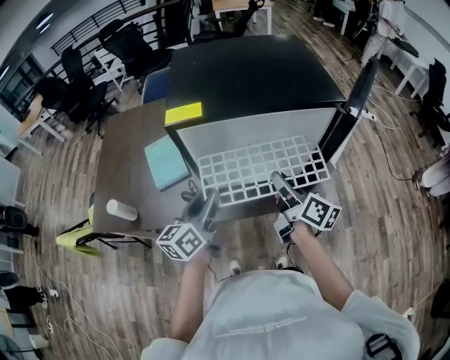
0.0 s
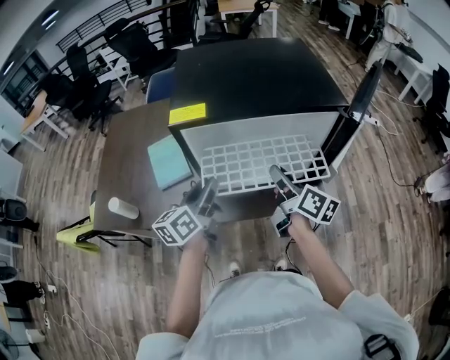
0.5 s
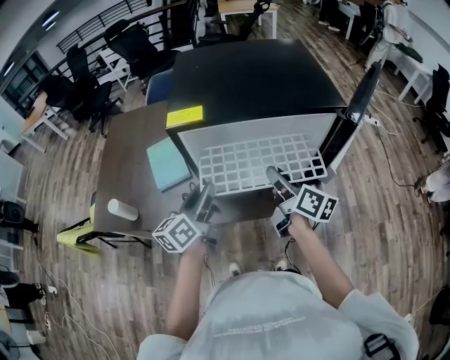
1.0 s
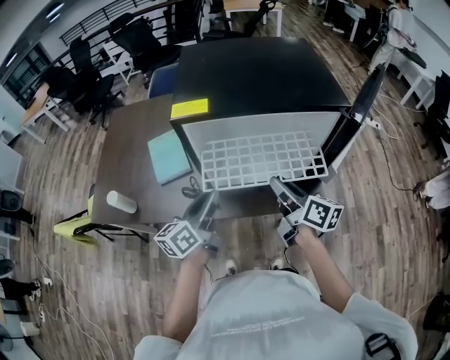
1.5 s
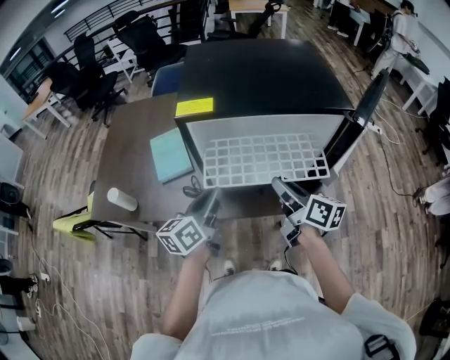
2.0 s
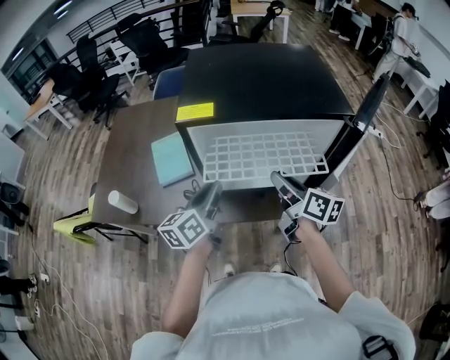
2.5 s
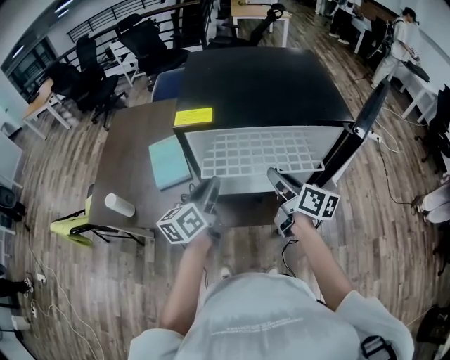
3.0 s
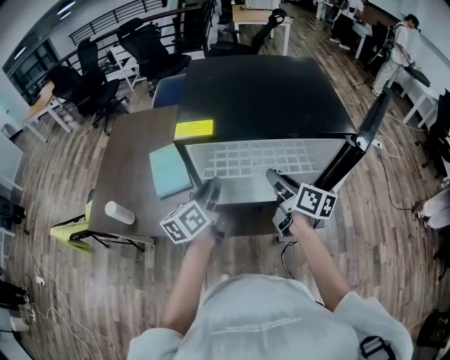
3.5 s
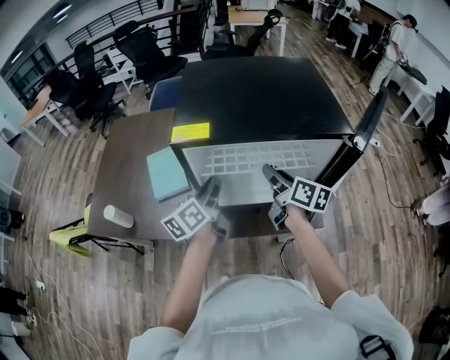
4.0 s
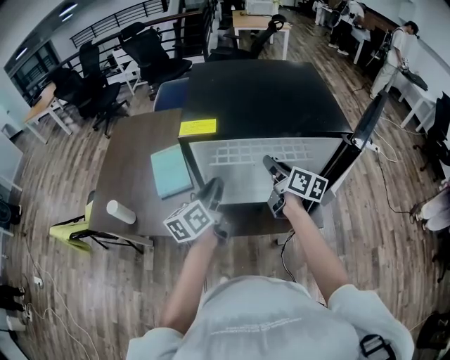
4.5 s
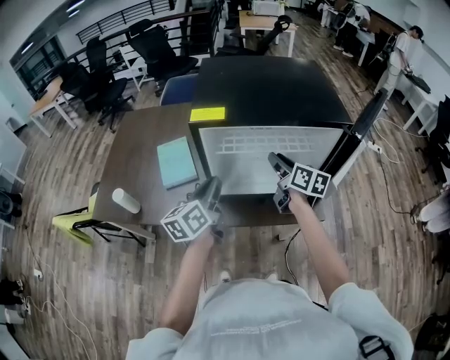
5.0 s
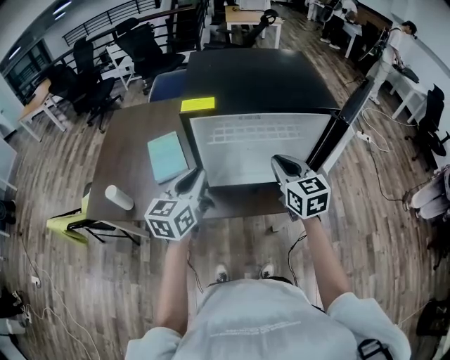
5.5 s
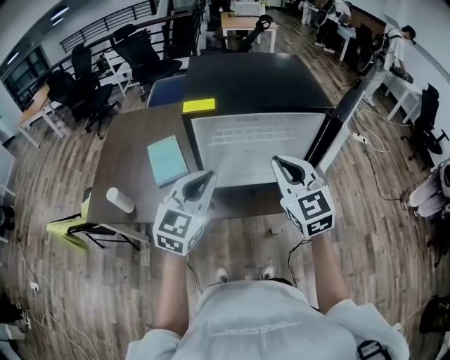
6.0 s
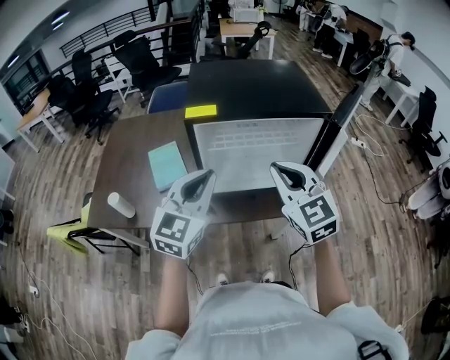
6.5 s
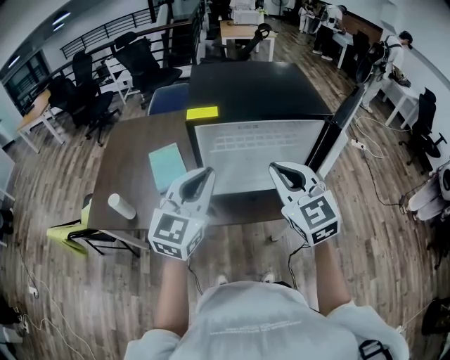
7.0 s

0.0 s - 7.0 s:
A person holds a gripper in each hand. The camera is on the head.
0.0 s - 2.0 s: The grippers make only small movements.
2.0 s - 3.5 s: Both grippers move forward, some 10 cm.
3.5 s - 5.0 s: The left gripper is displaced backward by about 5 cm.
5.0 s - 7.0 s: The left gripper travels upward and backward by some 15 cm, and twists approximately 50 degrees clockwise, seen from behind, while the right gripper travels backward and upward by about 25 cm, rolls counterclockwise, seen from behind, by roughly 60 degrees, and closes its fingers.

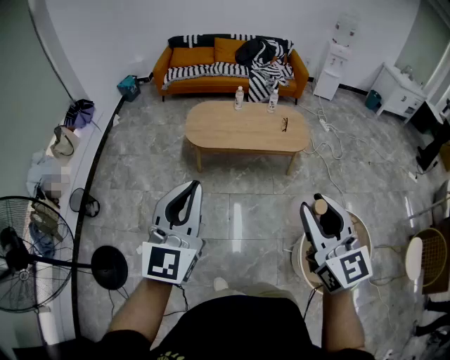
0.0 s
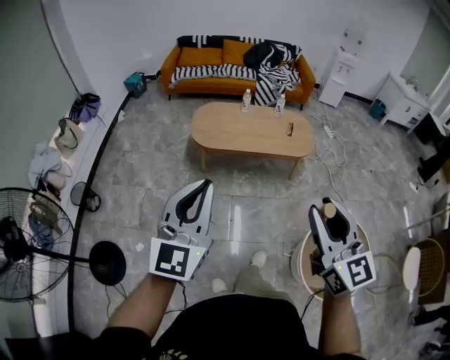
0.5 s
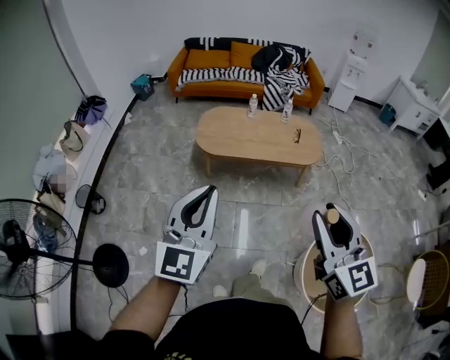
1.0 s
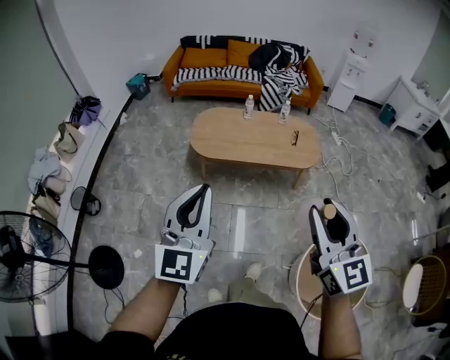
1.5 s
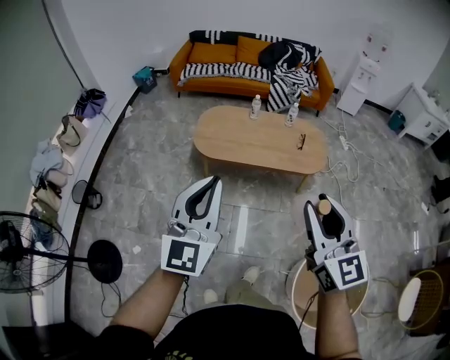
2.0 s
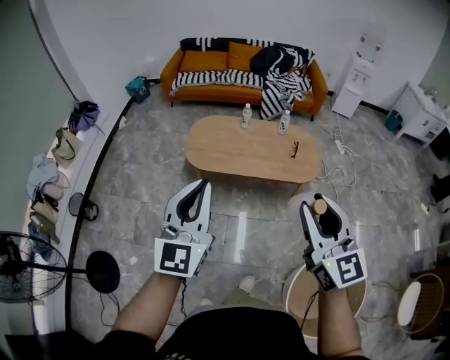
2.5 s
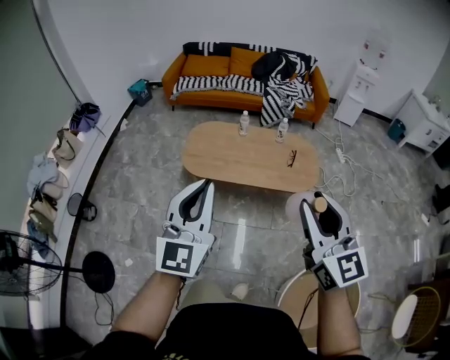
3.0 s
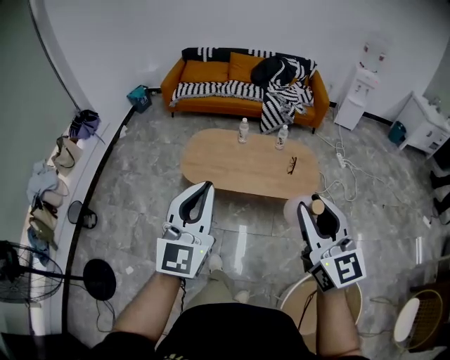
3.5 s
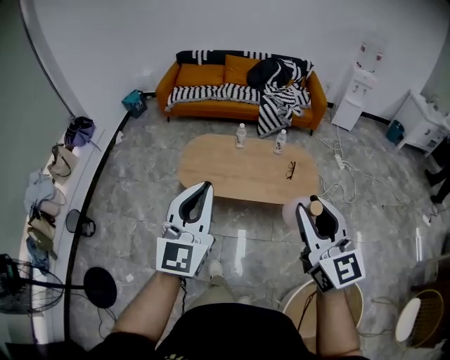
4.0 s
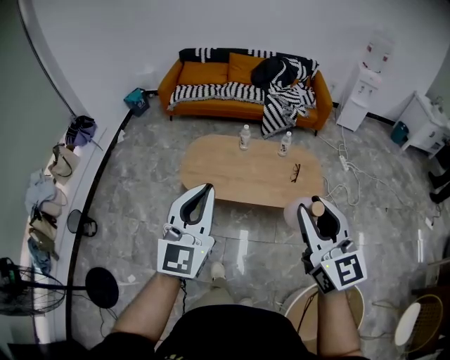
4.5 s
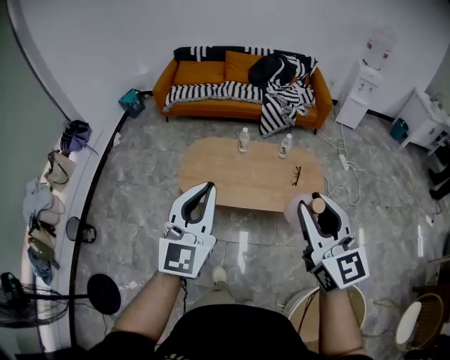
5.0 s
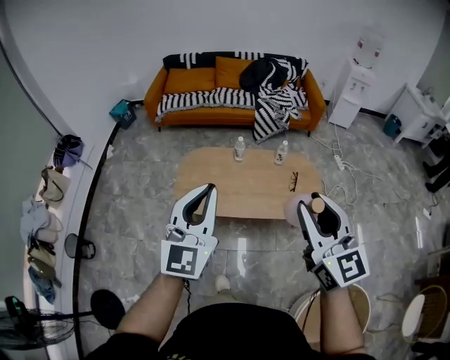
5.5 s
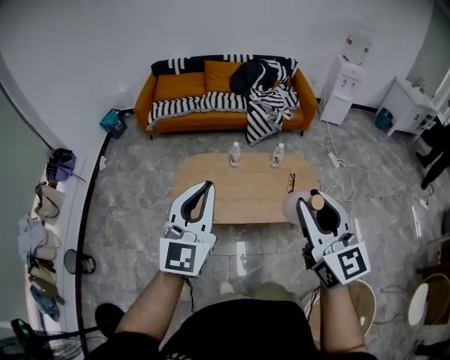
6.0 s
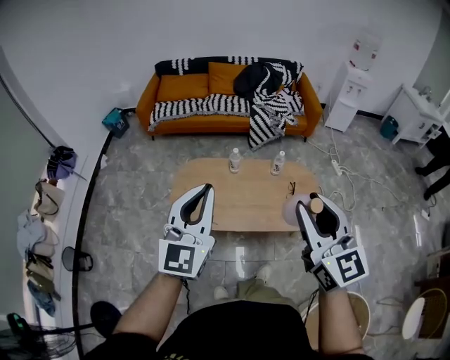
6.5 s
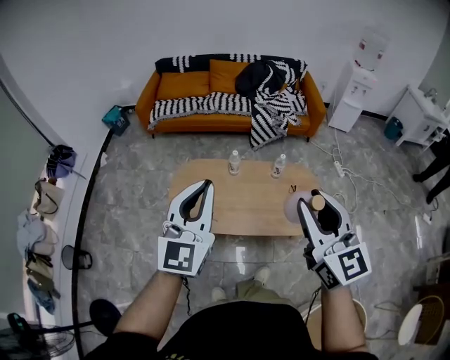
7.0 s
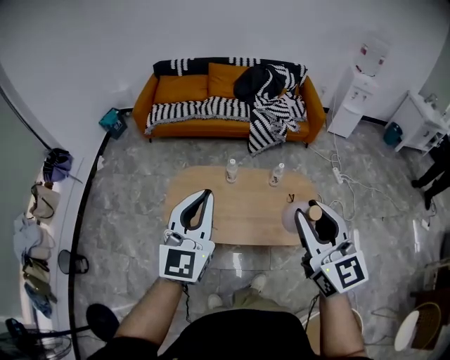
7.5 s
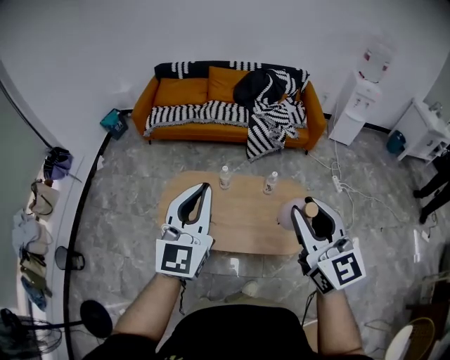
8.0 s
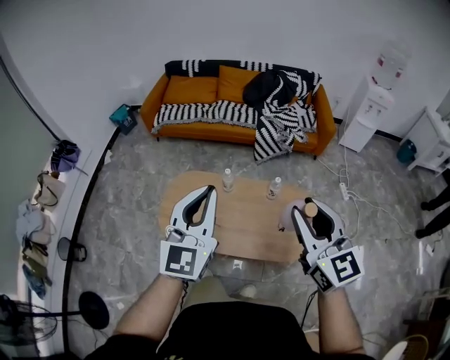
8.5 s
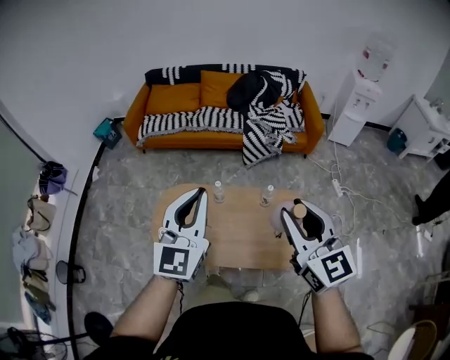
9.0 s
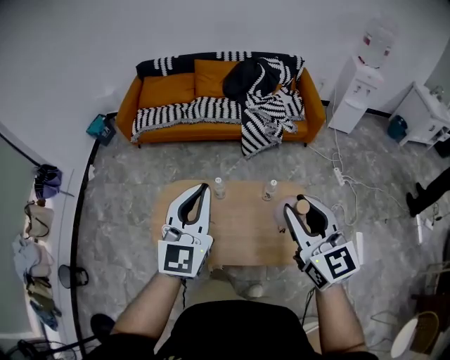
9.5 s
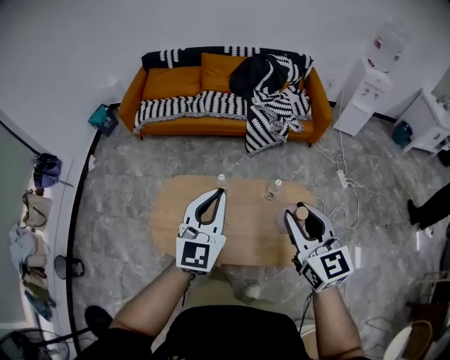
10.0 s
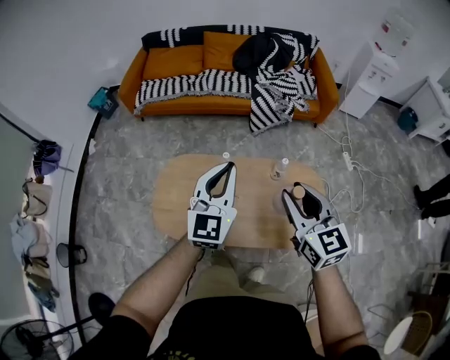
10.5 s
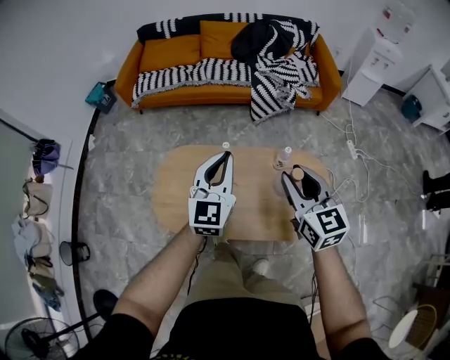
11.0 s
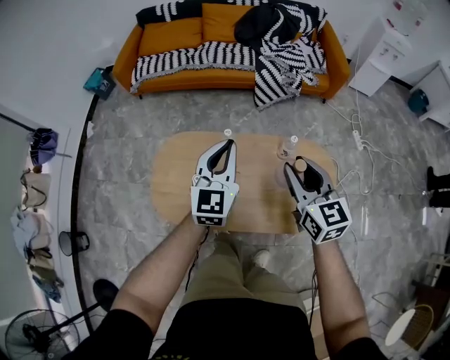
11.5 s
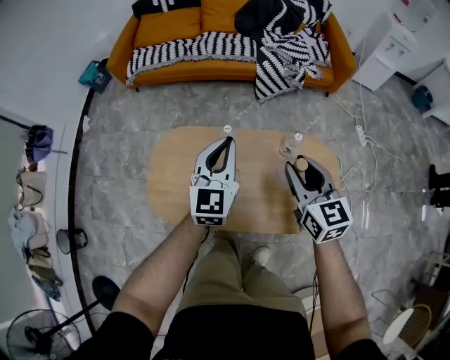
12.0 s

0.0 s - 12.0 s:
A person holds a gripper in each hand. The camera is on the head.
0.0 s - 2.0 s: The two grippers go about 20 cm forward.
2.0 s - 4.0 s: Both grippers travel together forward and to the right, about 20 cm.
4.0 s - 6.0 s: The two grippers go some 20 cm forward.
6.0 s - 8.0 s: The grippers both shift forward and to the right by approximately 20 cm.
8.0 s - 10.0 s: Both grippers move forward and downward, about 20 cm.
10.0 s - 12.0 s: Both grippers travel together downward and forward, about 20 cm.

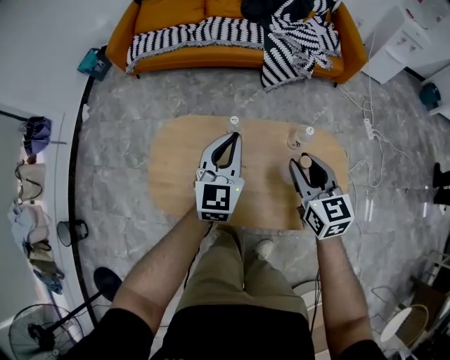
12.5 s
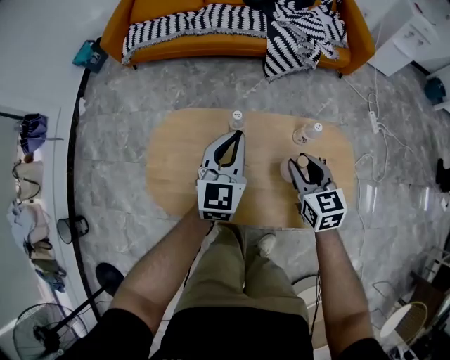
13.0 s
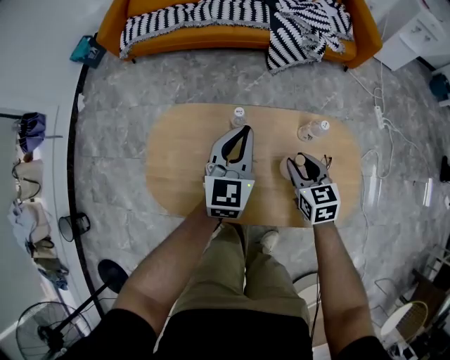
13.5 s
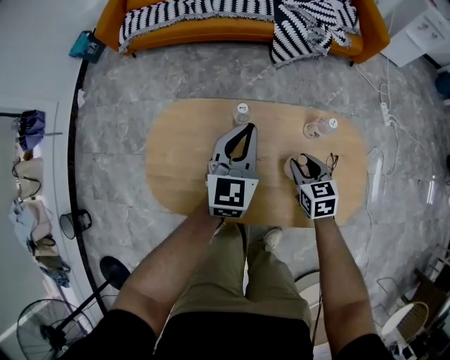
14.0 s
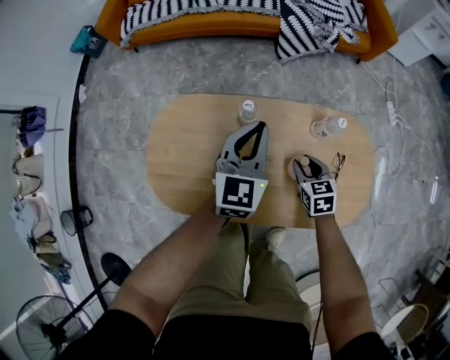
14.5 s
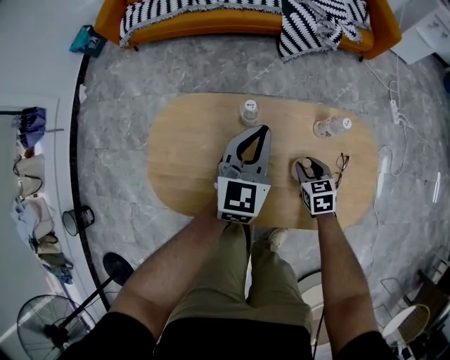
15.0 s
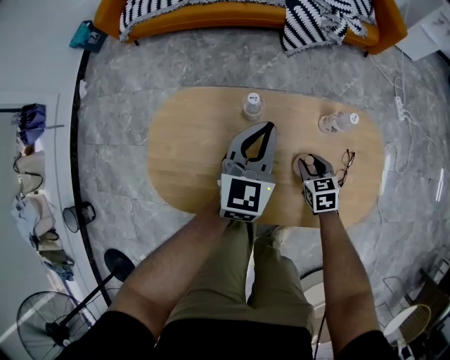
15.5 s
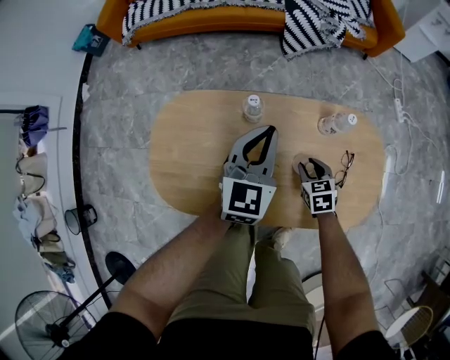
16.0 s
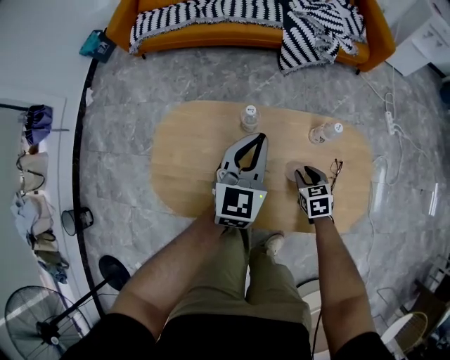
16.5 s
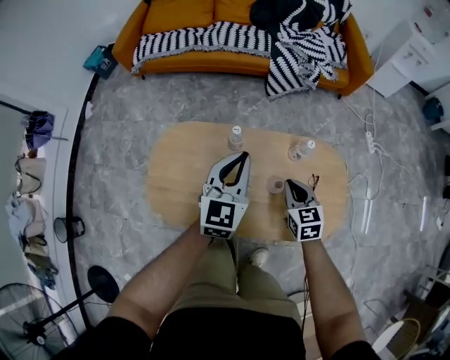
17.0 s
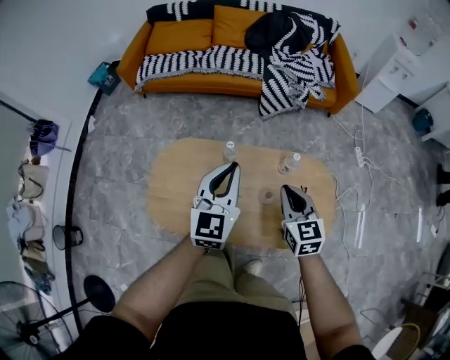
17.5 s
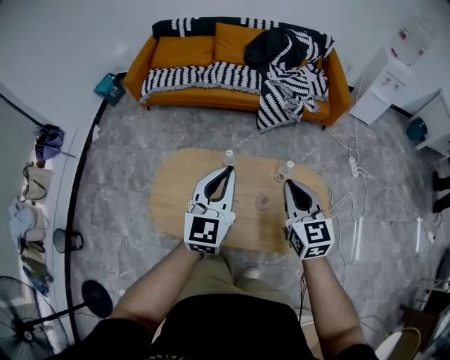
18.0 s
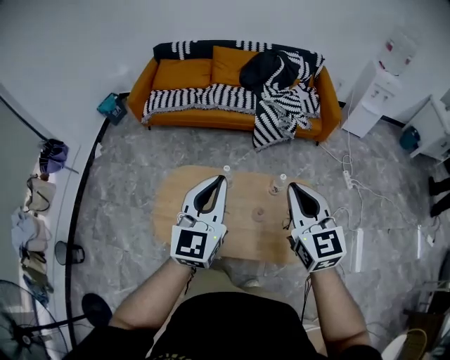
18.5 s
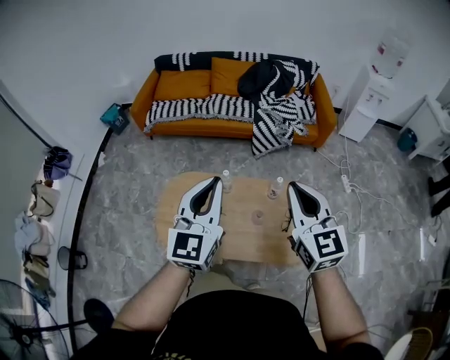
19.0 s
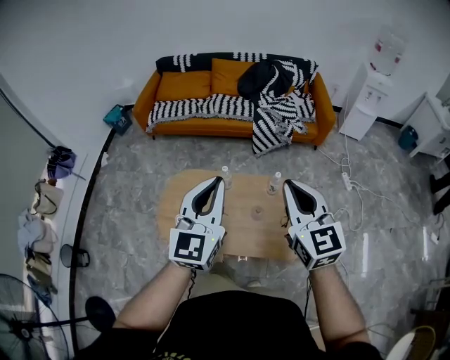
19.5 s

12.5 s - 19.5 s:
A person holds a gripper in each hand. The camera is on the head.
12.5 s - 14.5 s: The right gripper travels downward by roughly 30 cm, and changes its angle by about 20 degrees; the left gripper is displaced downward by approximately 10 cm.
14.5 s - 16.0 s: The right gripper goes about 5 cm downward.
16.0 s - 17.5 s: The left gripper goes about 20 cm upward; the right gripper moves upward, about 35 cm, rotates some 30 degrees, and closes its fingers.
17.5 s - 19.5 s: The right gripper travels upward by roughly 30 cm, while the left gripper travels upward and backward by roughly 25 cm.

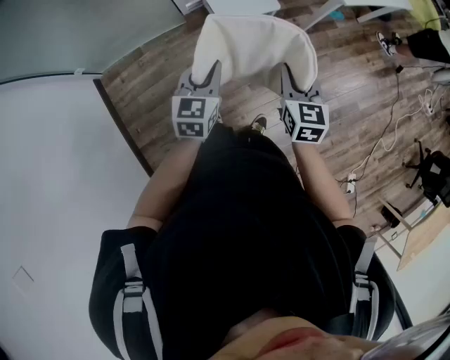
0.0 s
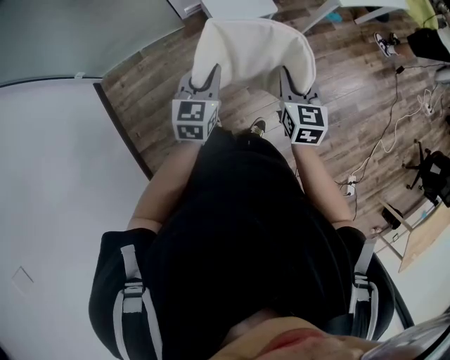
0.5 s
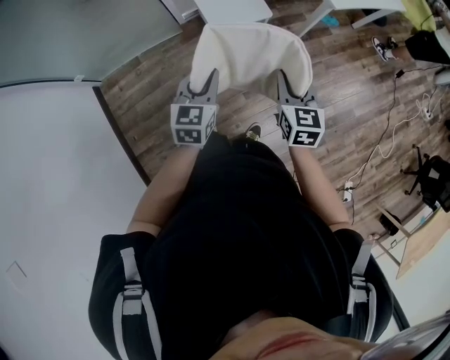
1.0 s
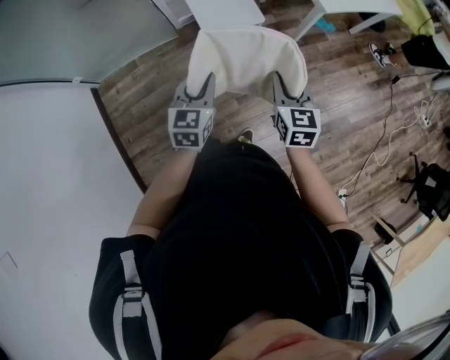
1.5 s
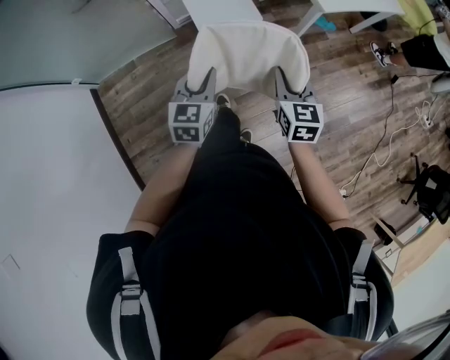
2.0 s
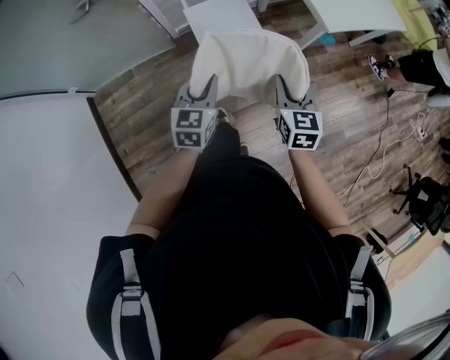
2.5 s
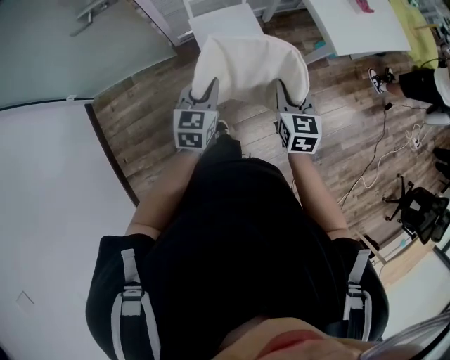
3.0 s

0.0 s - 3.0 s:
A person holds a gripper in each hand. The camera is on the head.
0.0 s - 1.5 s: Both grippers travel together to the right, about 10 cm.
1.5 s - 3.0 s: The two grippers go some 20 cm forward.
